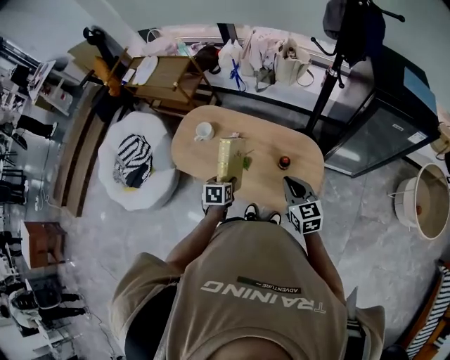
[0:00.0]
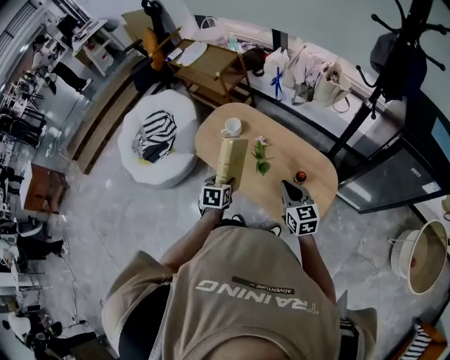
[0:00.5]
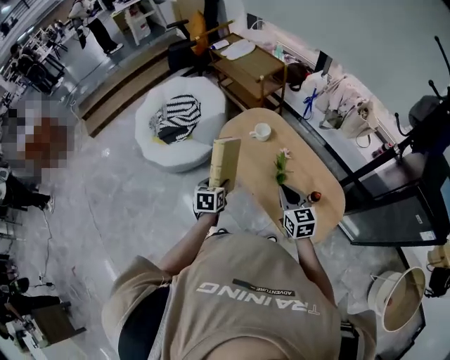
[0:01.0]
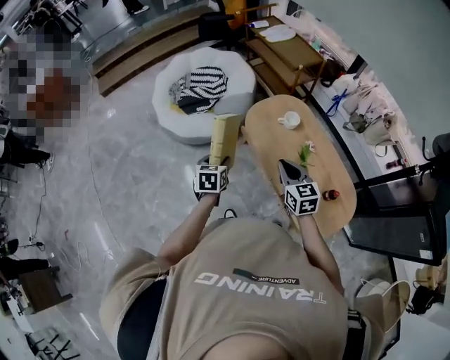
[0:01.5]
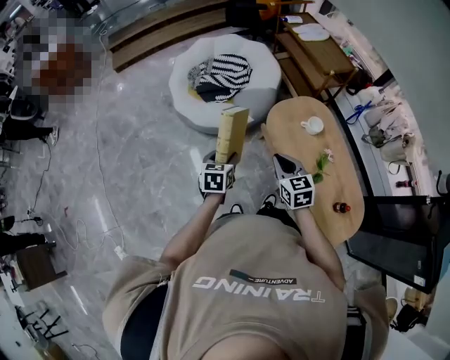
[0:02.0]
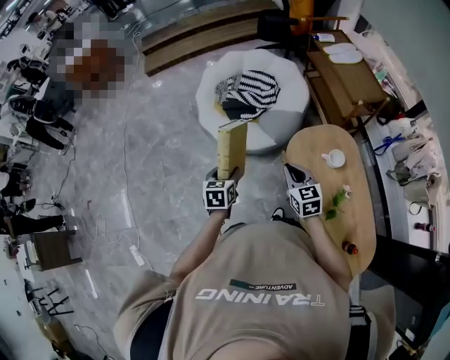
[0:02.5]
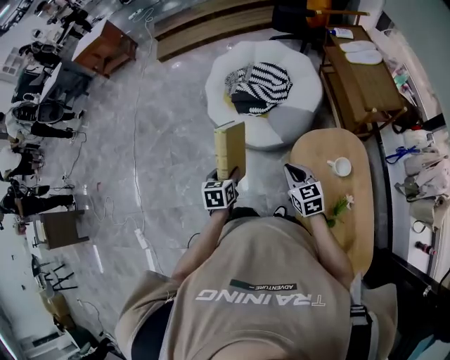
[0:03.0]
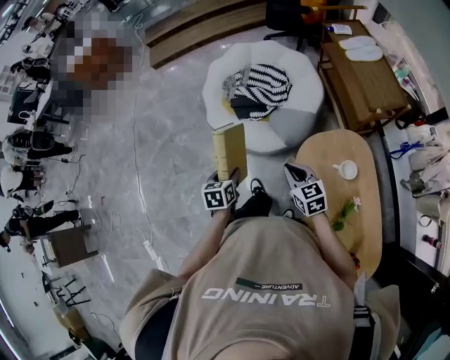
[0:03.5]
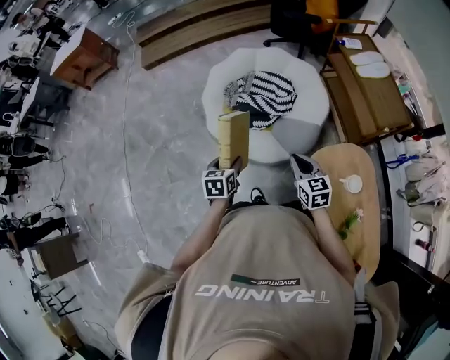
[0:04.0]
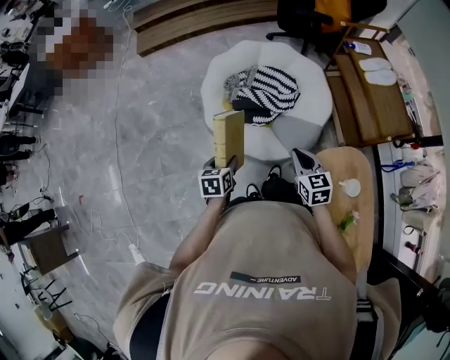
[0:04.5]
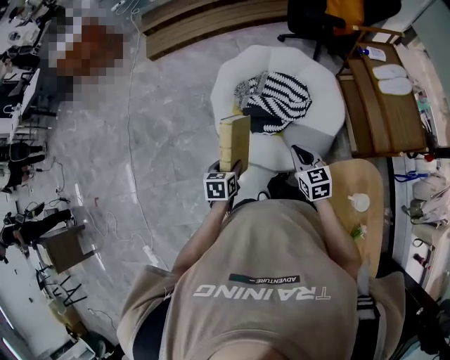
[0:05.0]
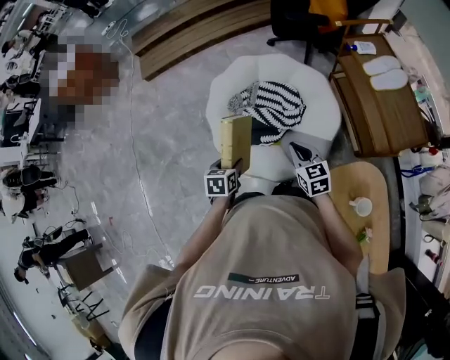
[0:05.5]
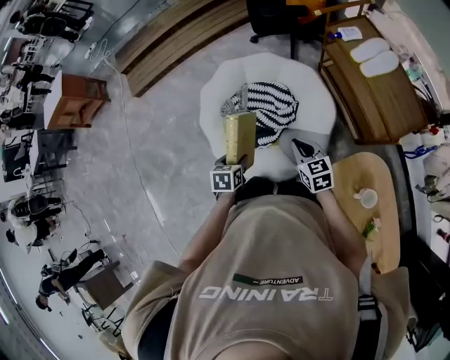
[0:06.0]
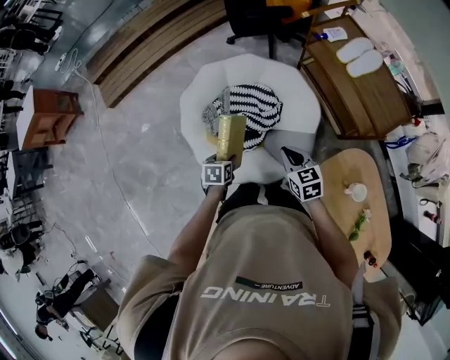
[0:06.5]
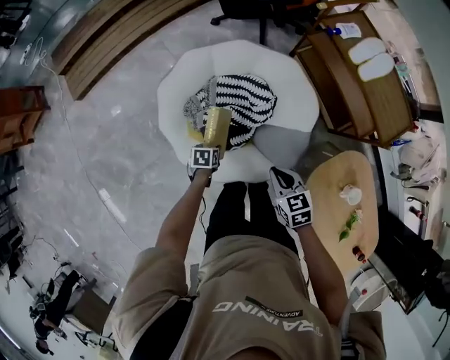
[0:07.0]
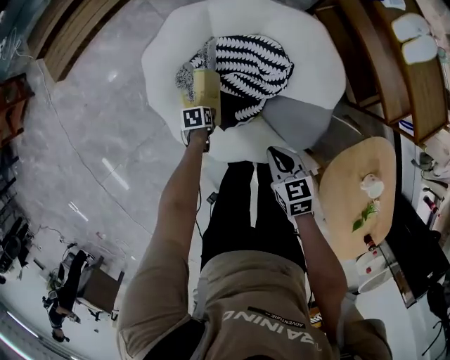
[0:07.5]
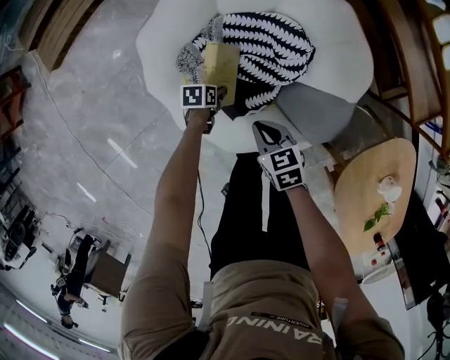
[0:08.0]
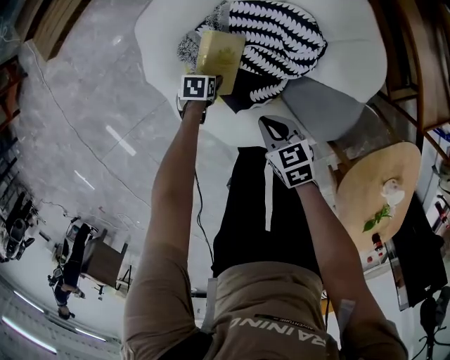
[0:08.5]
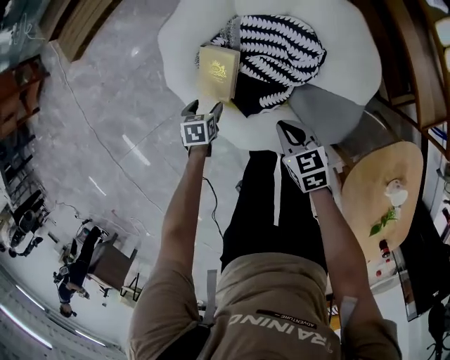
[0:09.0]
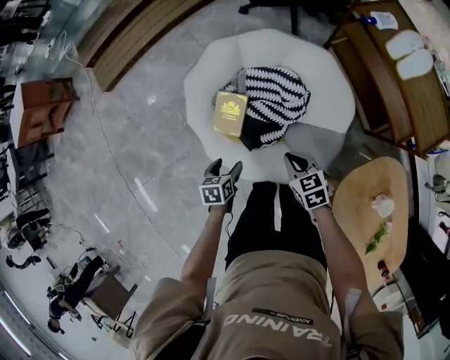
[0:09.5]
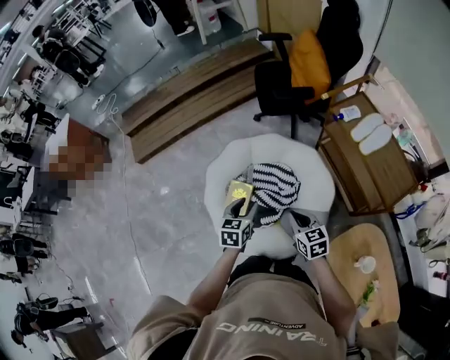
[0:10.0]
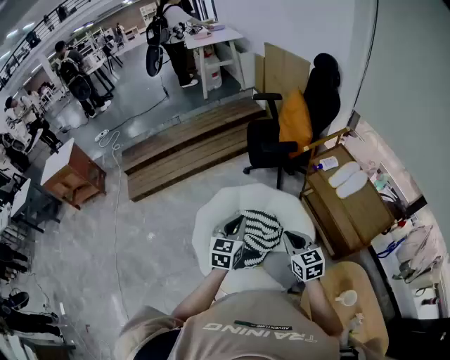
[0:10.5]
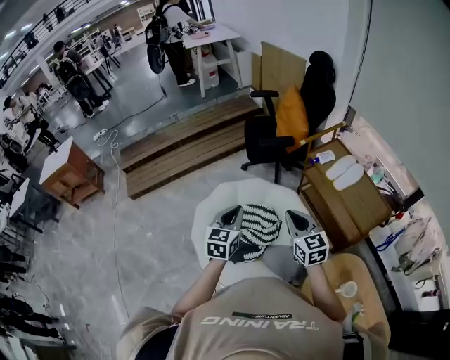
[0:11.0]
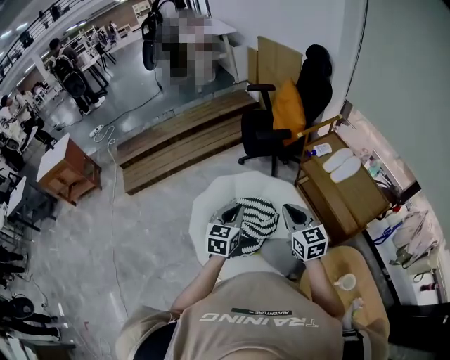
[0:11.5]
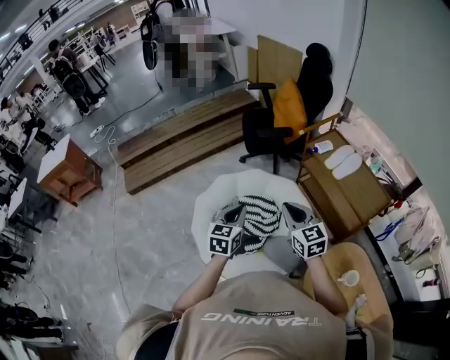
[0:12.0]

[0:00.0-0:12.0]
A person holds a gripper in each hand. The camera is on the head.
0:00.0 to 0:02.0: The pair of grippers is taken about 40 cm. The left gripper swivels roughly 50 degrees; the right gripper turns by some 50 degrees.
0:02.0 to 0:04.0: The two grippers go roughly 30 cm forward.
0:04.0 to 0:06.0: The grippers both shift forward by roughly 25 cm.
0:06.0 to 0:08.0: The two grippers go roughly 35 cm downward. The right gripper turns by some 20 degrees. The left gripper turns by some 30 degrees.
0:08.0 to 0:10.0: The right gripper moves upward, about 30 cm, and turns by some 20 degrees. The left gripper travels upward by about 50 cm, and swivels approximately 50 degrees.
0:10.0 to 0:12.0: The two grippers go about 15 cm upward. The left gripper closes, while the right gripper swivels approximately 20 degrees.

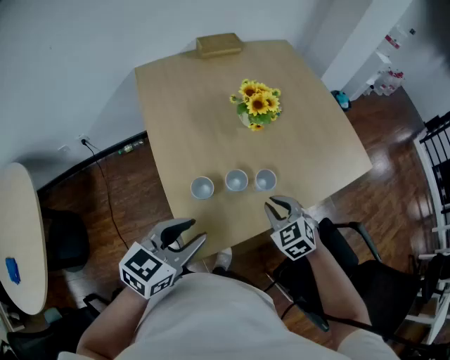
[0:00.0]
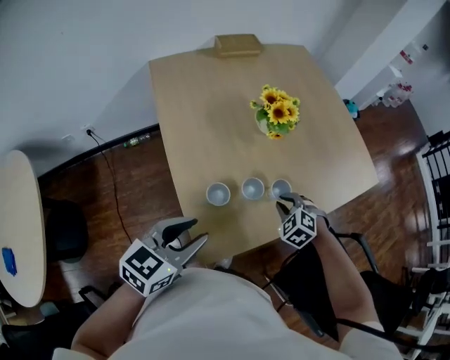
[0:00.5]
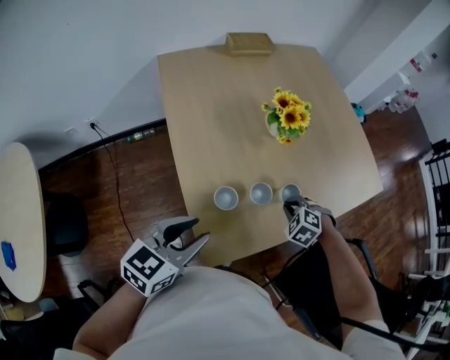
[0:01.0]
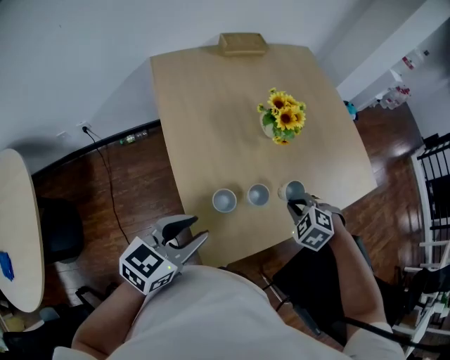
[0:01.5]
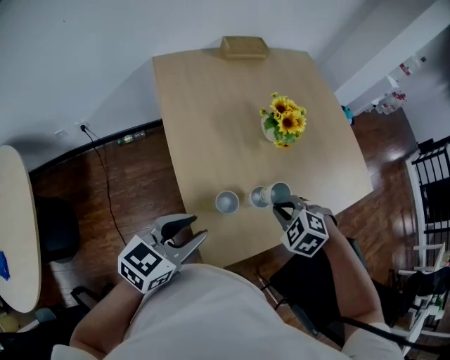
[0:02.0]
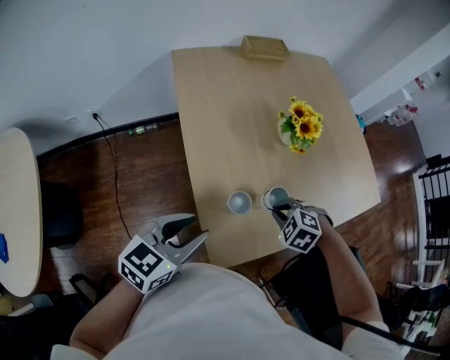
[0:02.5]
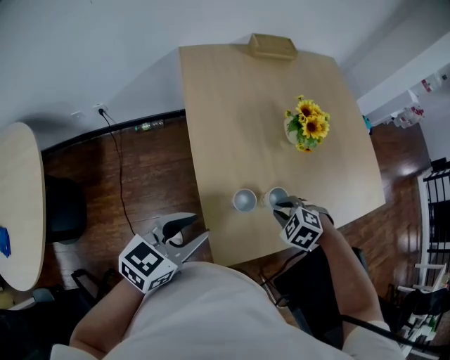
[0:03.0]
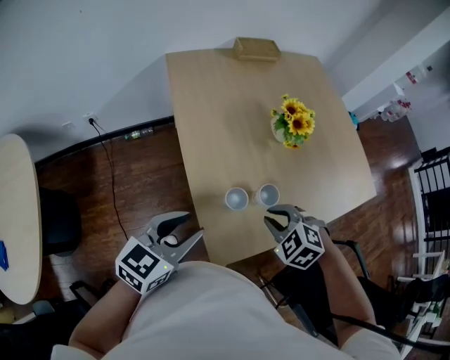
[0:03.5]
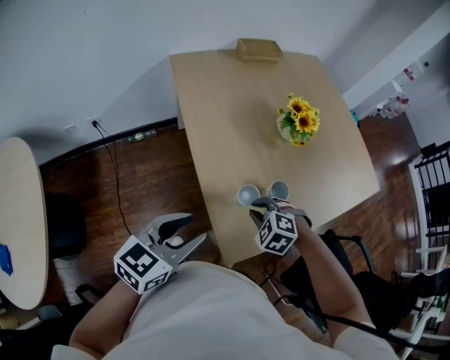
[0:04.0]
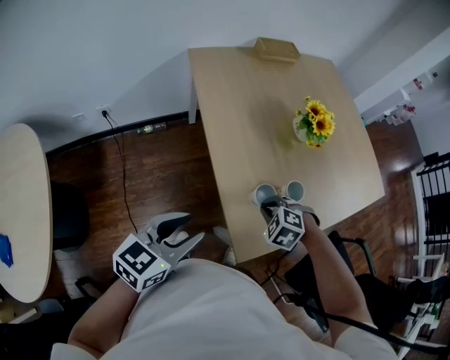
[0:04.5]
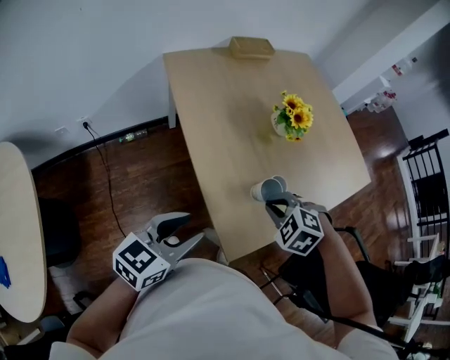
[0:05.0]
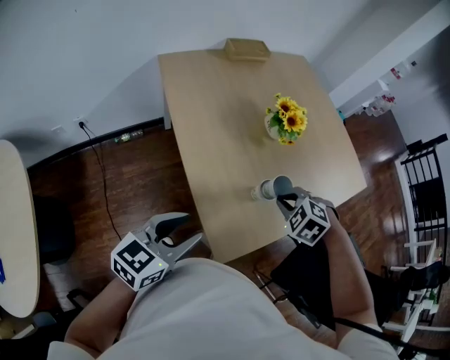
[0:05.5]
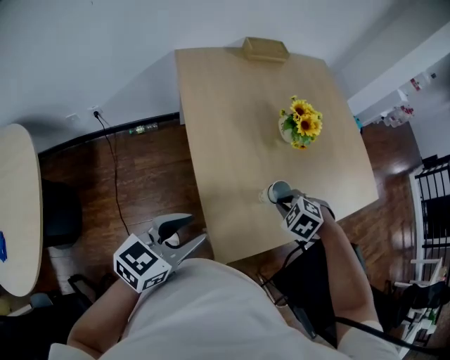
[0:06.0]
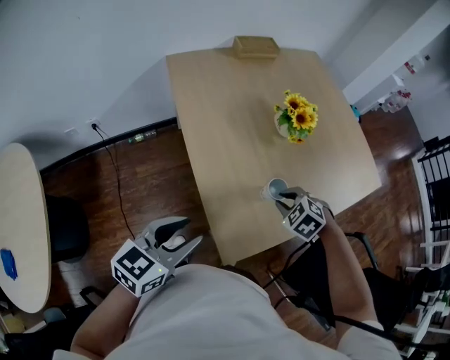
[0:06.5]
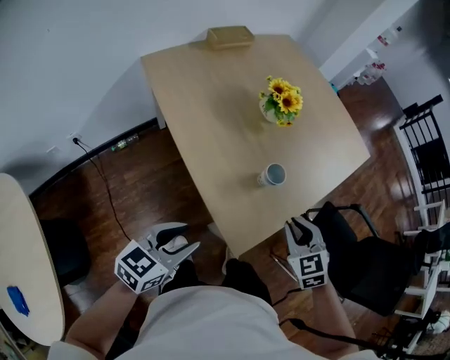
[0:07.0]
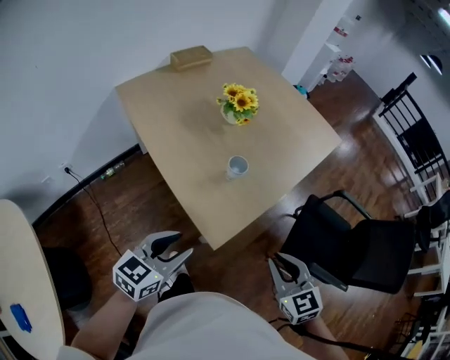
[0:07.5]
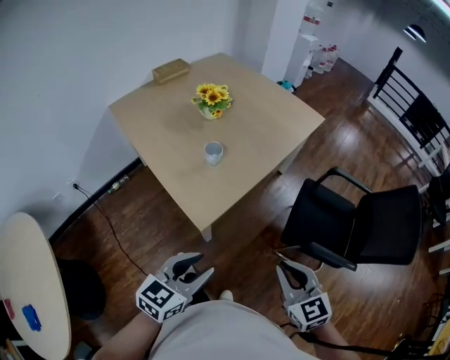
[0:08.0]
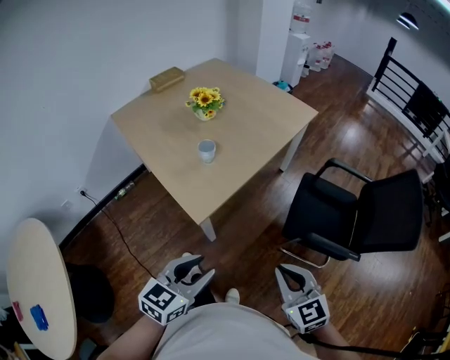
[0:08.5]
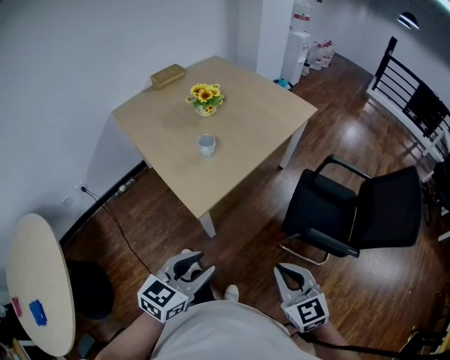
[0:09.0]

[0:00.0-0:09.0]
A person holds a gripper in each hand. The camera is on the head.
0:00.0 to 0:02.0: Both grippers travel together to the left, approximately 10 cm. The right gripper reaches approximately 5 cm downward, then returns, and swivels approximately 30 degrees.
0:02.0 to 0:04.5: The right gripper moves up and down over roughly 10 cm, changing direction 2 times; the left gripper moves approximately 15 cm.
0:04.5 to 0:07.0: The right gripper swings up and down, about 10 cm each way, with 2 reversals, and tips its fingers upward by approximately 30 degrees.
0:07.0 to 0:09.0: The left gripper heads to the right and backward, covering about 35 cm. The right gripper shifts roughly 40 cm backward and to the right, and swivels approximately 30 degrees.

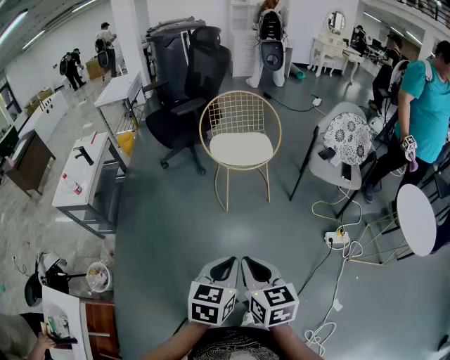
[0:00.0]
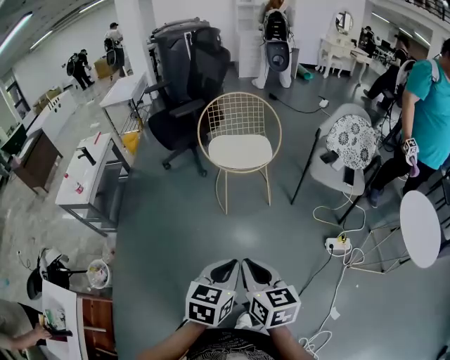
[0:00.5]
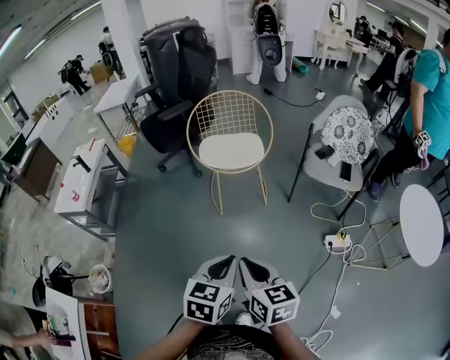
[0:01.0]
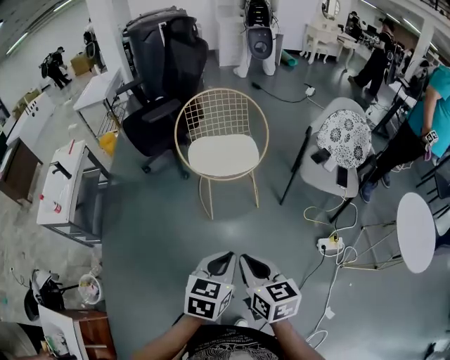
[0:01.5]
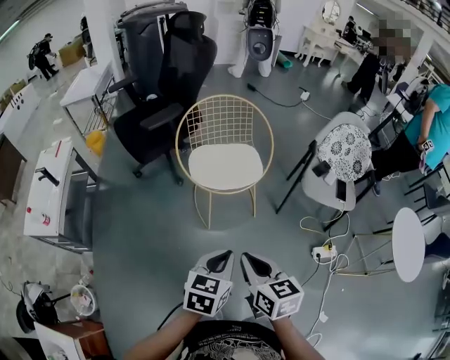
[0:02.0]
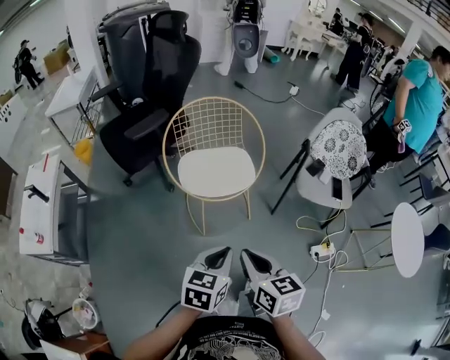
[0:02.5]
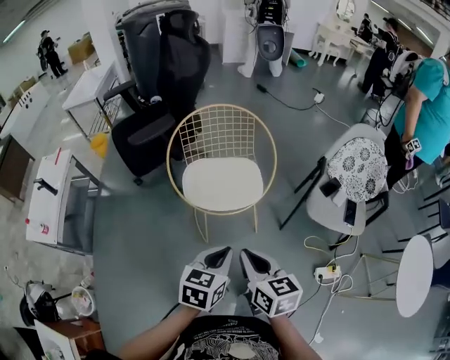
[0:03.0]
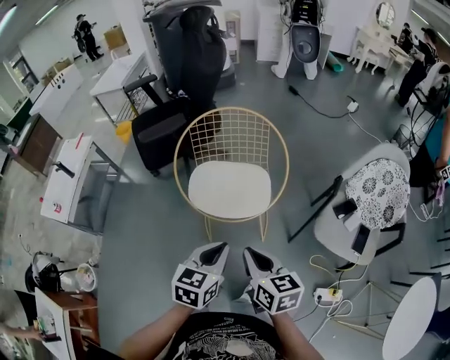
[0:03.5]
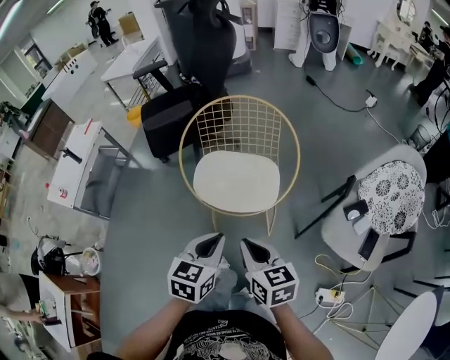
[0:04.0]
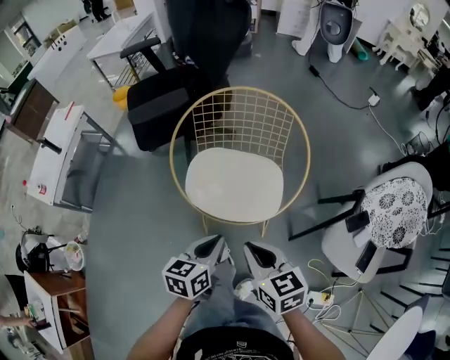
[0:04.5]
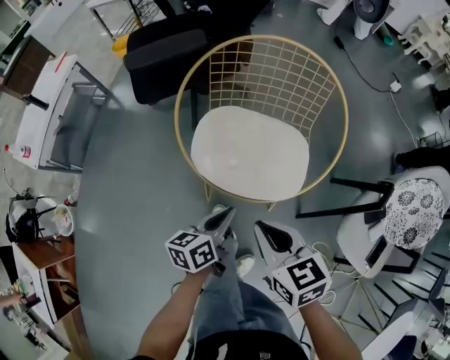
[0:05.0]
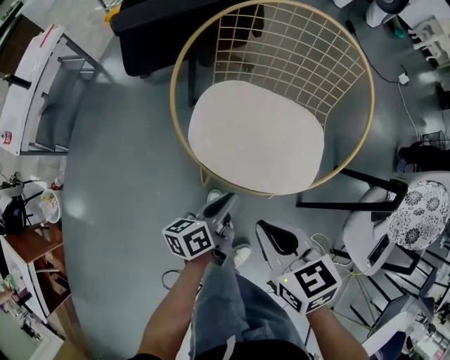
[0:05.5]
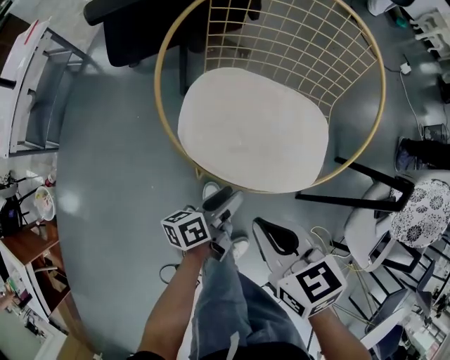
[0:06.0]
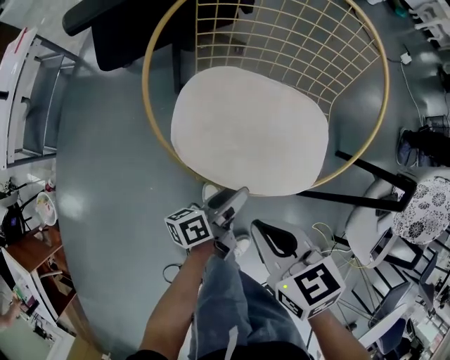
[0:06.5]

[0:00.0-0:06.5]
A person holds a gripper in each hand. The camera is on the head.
0:00.0 to 0:02.0: The grippers both shift forward by roughly 25 cm.
0:02.0 to 0:04.5: The left gripper moves about 30 cm, and rotates approximately 30 degrees. Meanwhile the right gripper ends up roughly 30 cm from where it was, and swivels roughly 30 degrees.
0:04.5 to 0:06.5: The right gripper goes some 15 cm downward and forward; the left gripper goes approximately 25 cm downward, rolls counterclockwise, seen from behind, by about 40 degrees, and opens up.
